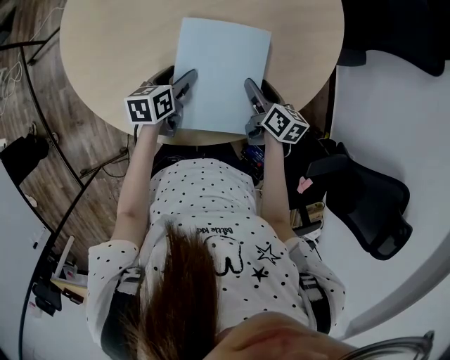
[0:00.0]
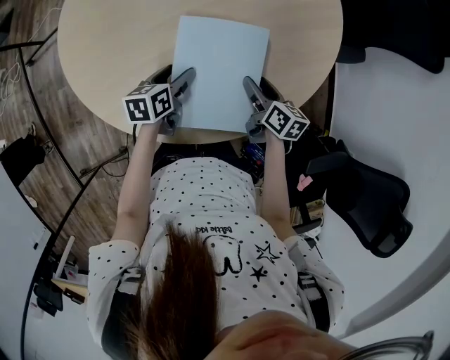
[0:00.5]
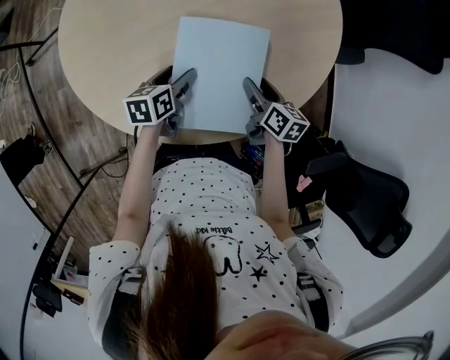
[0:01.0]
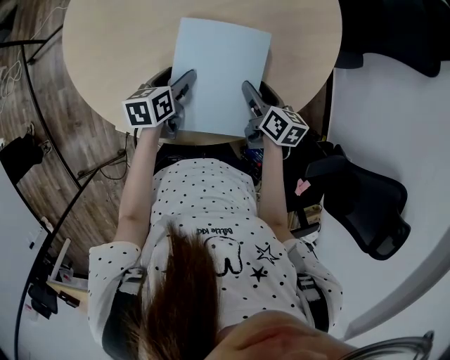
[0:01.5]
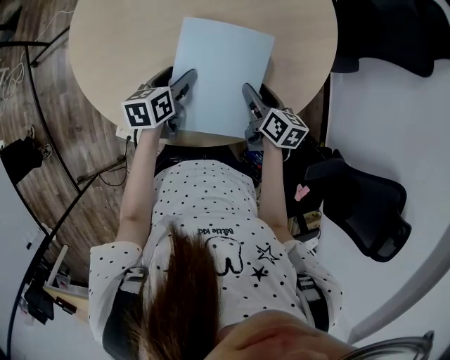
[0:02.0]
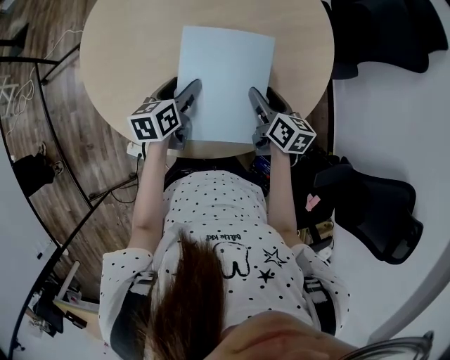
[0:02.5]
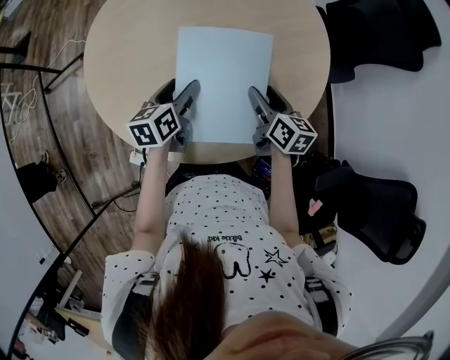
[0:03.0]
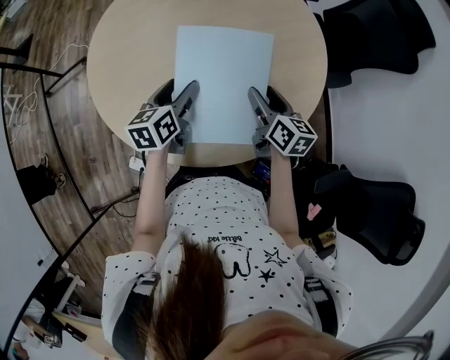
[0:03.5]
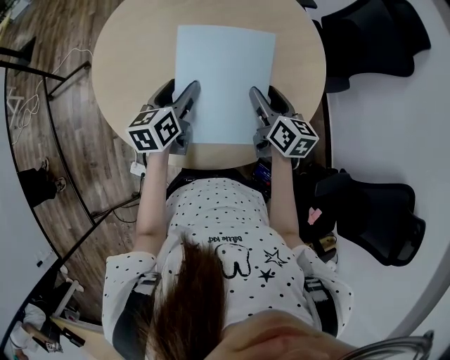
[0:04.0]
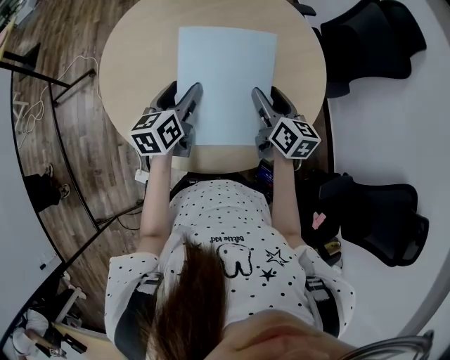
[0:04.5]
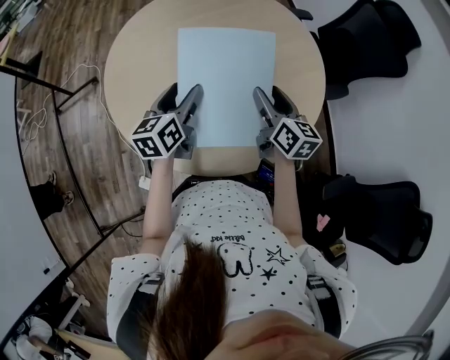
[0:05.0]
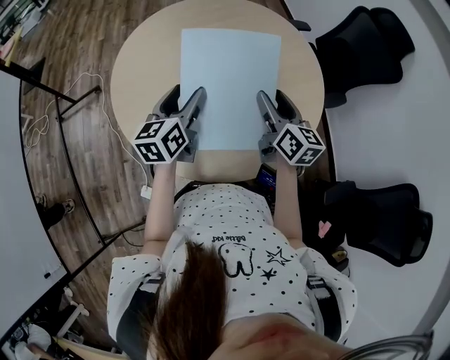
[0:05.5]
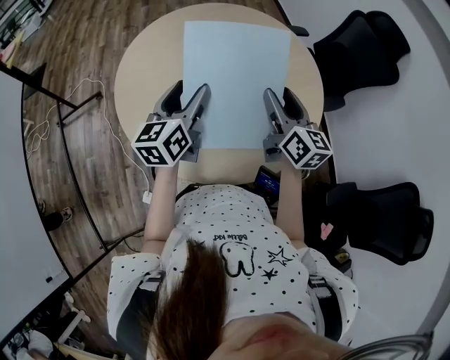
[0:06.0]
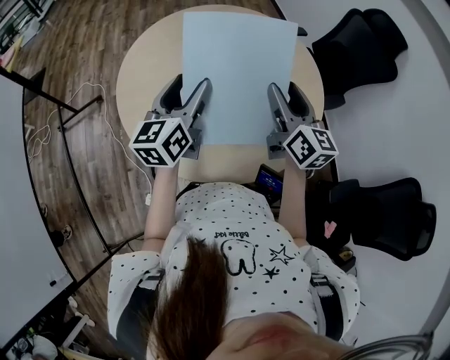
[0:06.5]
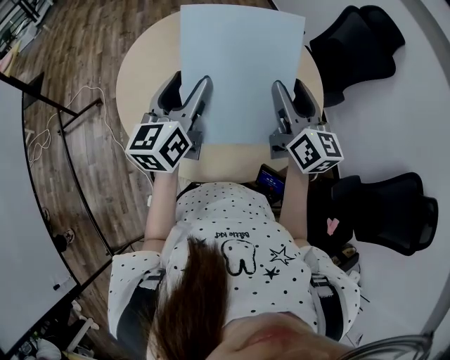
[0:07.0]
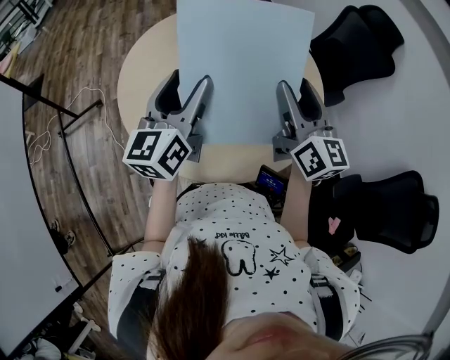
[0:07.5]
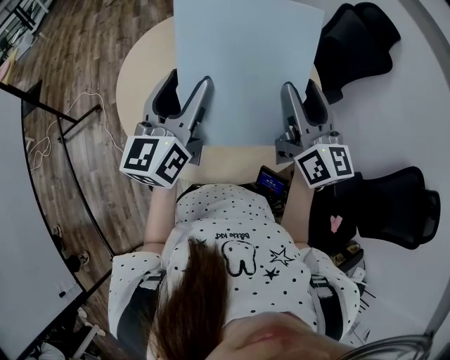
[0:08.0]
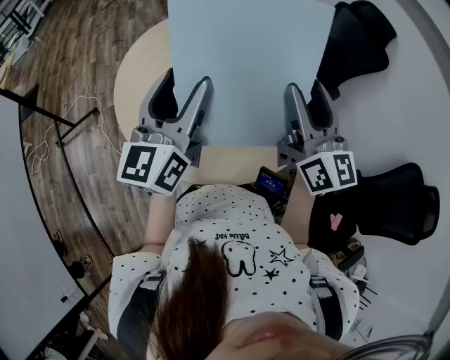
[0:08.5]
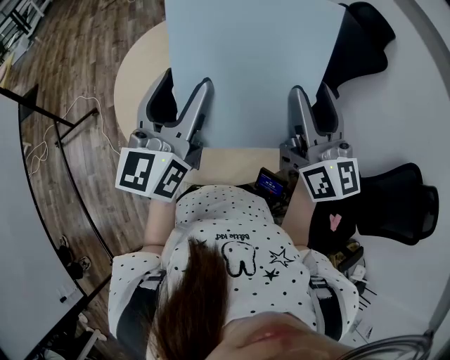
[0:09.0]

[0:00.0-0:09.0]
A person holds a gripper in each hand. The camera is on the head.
0:00.0 to 0:02.0: The left gripper shifts by roughly 5 cm.
0:02.0 to 0:04.5: Both grippers move upward, approximately 15 cm. The left gripper turns by approximately 20 degrees. Meanwhile the right gripper changes its angle by approximately 20 degrees.
0:04.5 to 0:07.0: The two grippers go some 15 cm upward. The right gripper swivels about 20 degrees. Meanwhile the left gripper swivels roughly 20 degrees.
0:07.0 to 0:09.0: The right gripper goes some 10 cm upward and backward, while the left gripper goes some 10 cm upward.

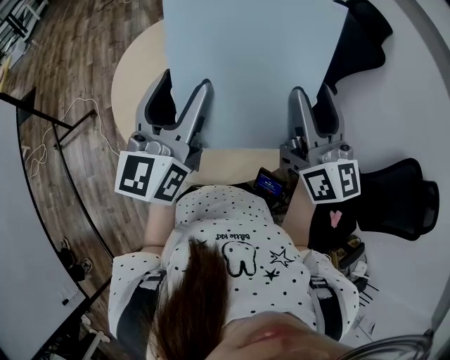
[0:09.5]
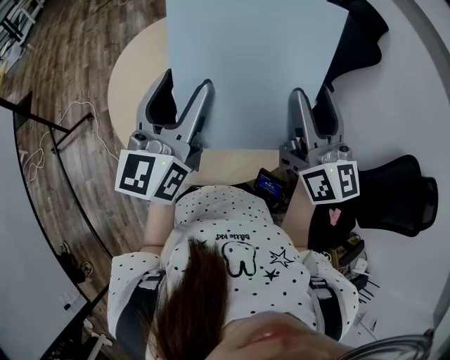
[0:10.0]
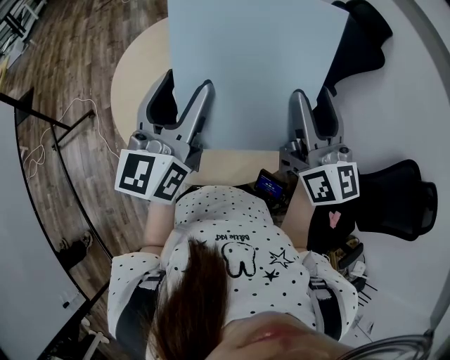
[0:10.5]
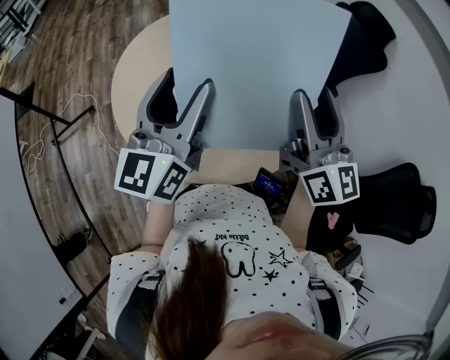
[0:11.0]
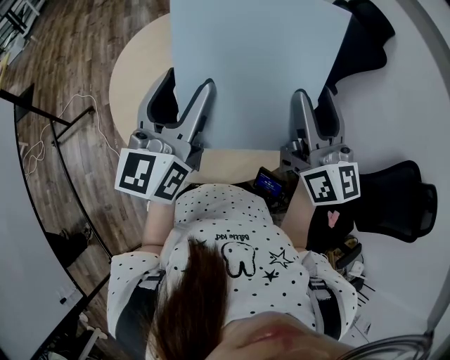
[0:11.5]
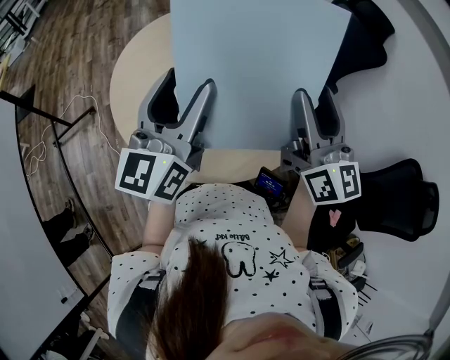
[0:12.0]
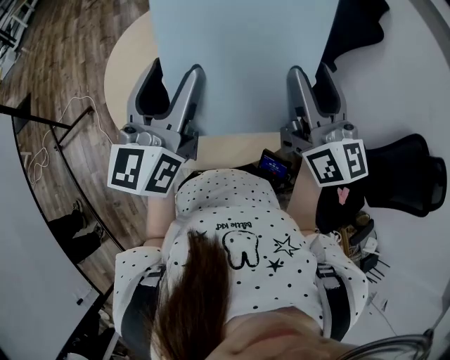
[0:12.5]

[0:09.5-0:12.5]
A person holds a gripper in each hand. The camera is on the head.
0:09.5 to 0:12.5: The two grippers keep their place.

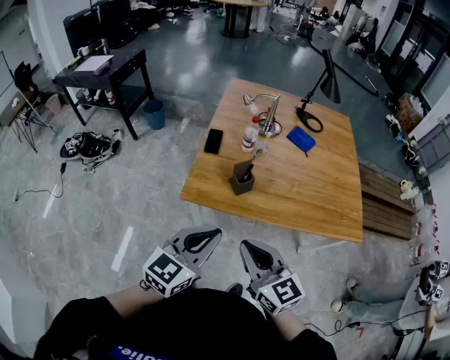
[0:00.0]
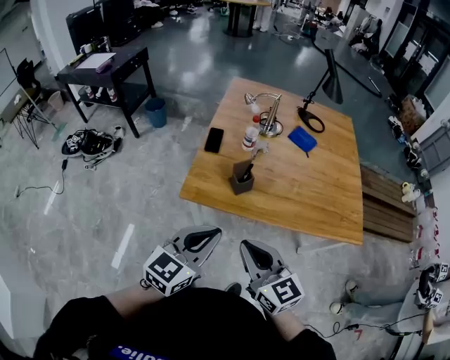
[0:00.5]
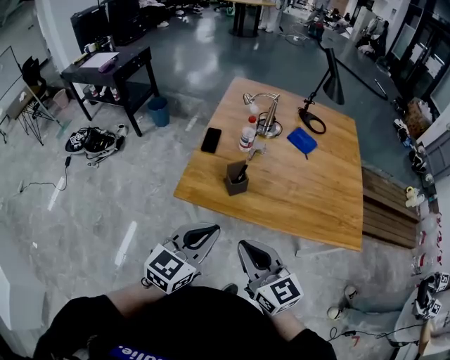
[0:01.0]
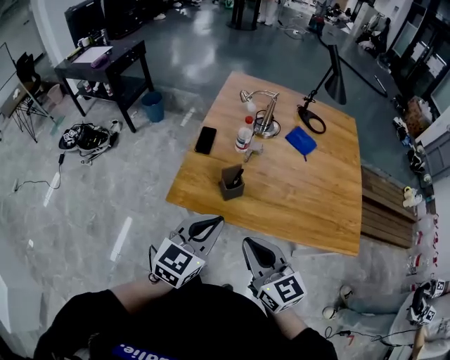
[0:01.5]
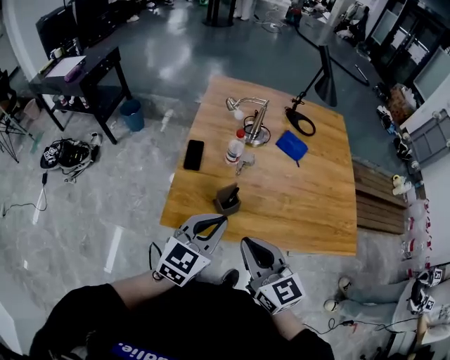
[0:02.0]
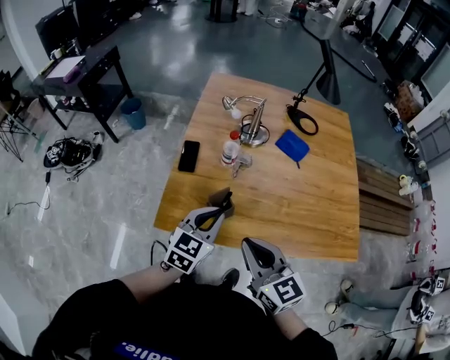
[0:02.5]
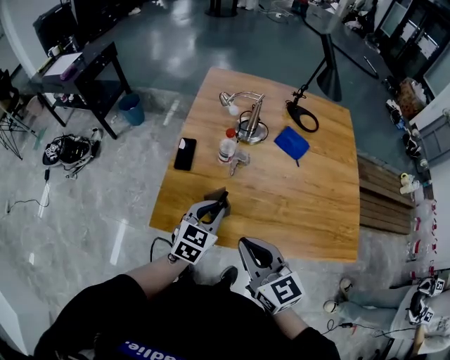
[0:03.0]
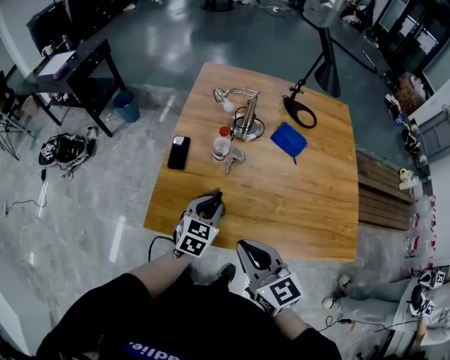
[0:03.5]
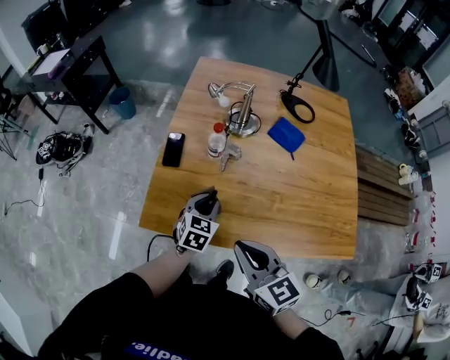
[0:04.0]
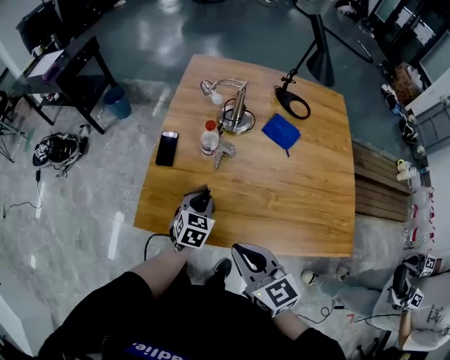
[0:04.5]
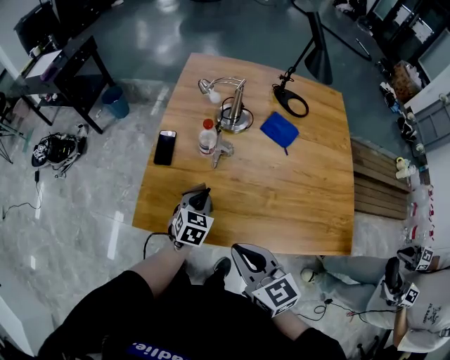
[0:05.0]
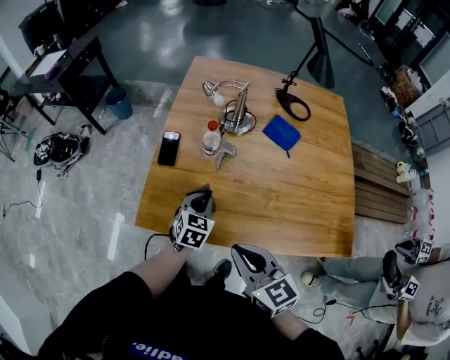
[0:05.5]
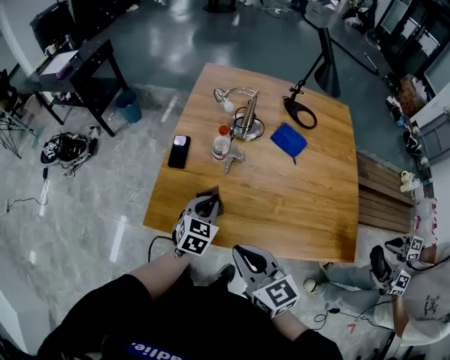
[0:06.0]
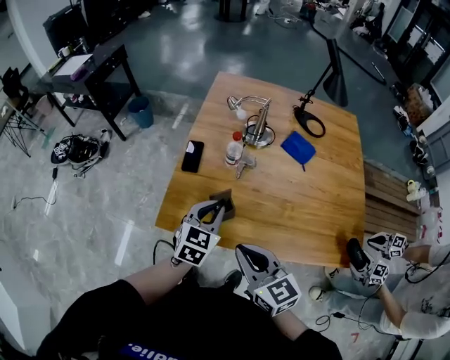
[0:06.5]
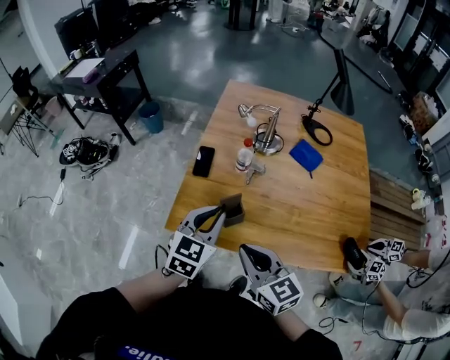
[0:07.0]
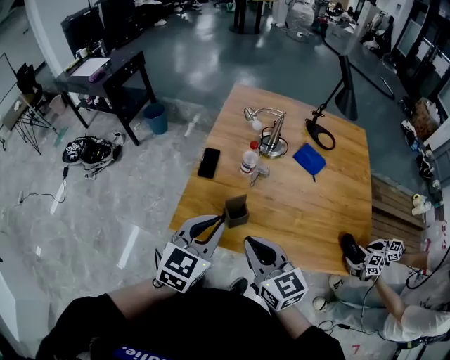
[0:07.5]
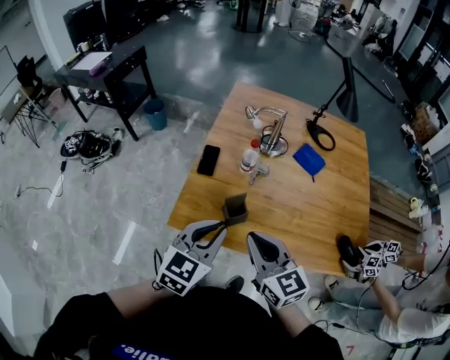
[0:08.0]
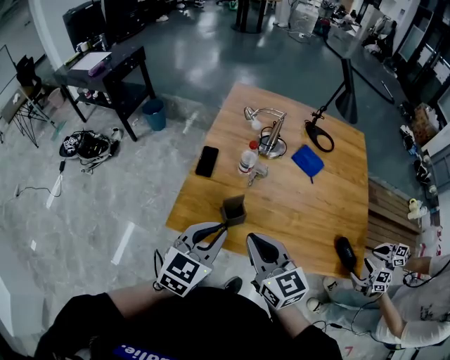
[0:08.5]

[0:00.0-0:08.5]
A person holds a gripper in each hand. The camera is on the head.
0:00.0 to 0:02.0: The two grippers go approximately 15 cm forward.
0:02.0 to 0:04.0: The left gripper heads downward and forward, covering roughly 25 cm, and swivels roughly 30 degrees. The right gripper shifts some 10 cm to the right and forward.
0:04.0 to 0:06.5: The left gripper travels upward by approximately 10 cm.
0:06.5 to 0:08.5: The left gripper heads upward and backward, covering roughly 10 cm.

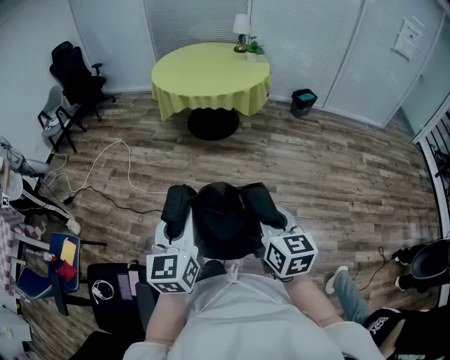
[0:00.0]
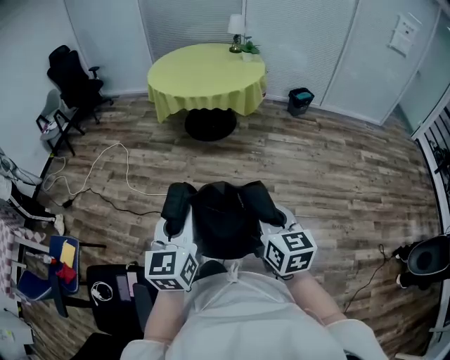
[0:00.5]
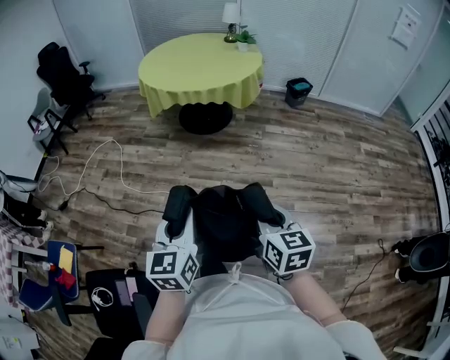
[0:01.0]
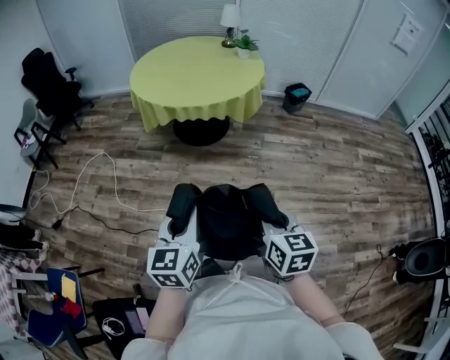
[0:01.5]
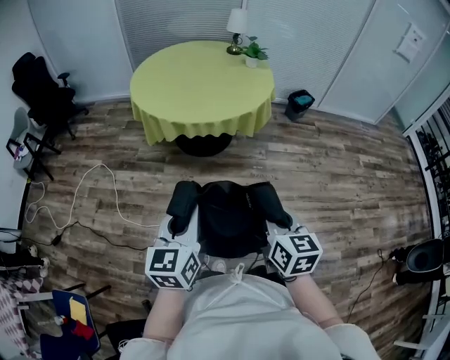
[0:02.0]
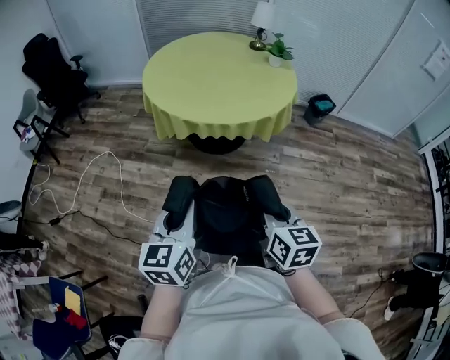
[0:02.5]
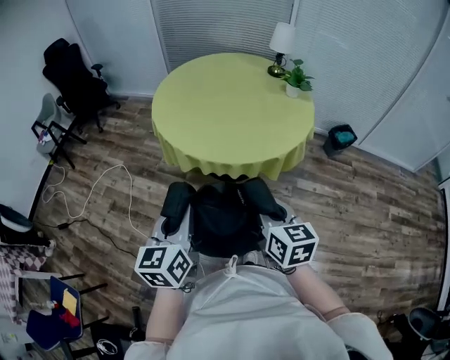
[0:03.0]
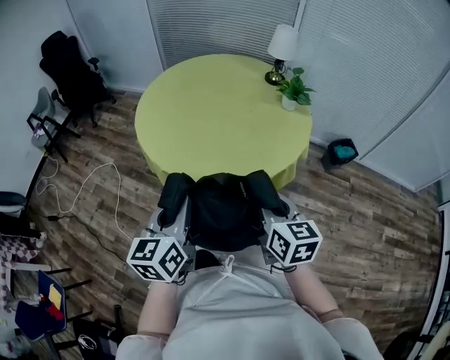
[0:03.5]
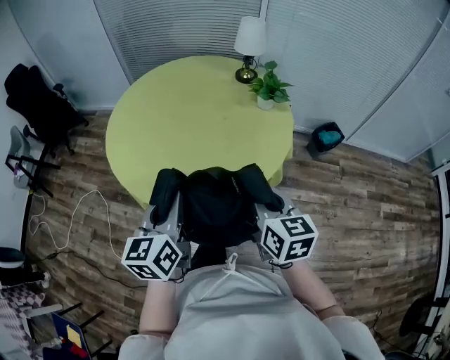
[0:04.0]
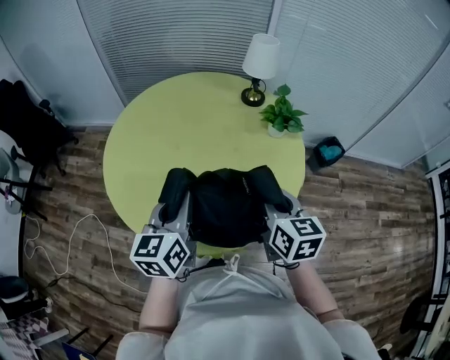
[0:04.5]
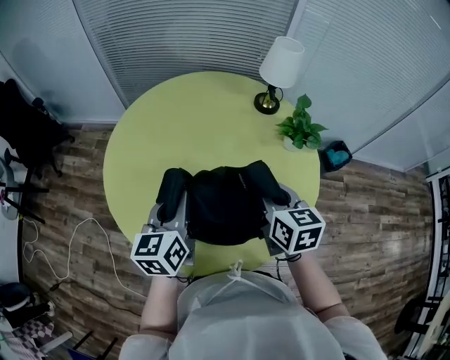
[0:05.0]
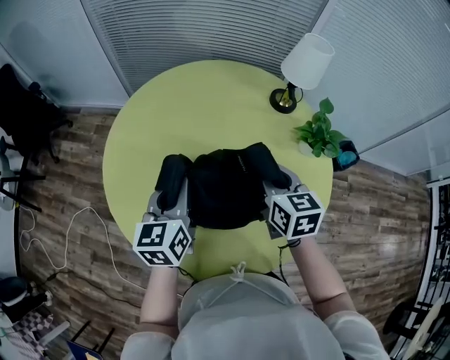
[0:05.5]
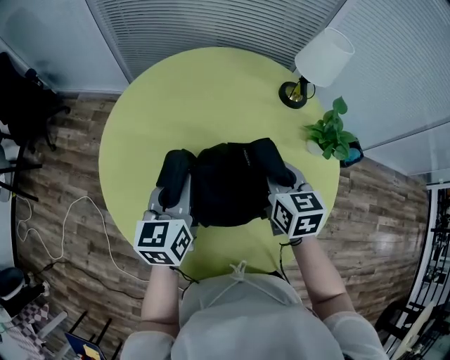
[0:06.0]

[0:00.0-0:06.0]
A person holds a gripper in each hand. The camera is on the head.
0:00.0 to 0:02.0: Both grippers move forward, roughly 35 cm.
0:02.0 to 0:04.0: The two grippers travel together, forward, roughly 60 cm.
0:04.0 to 0:06.0: The pair of grippers is taken forward, some 50 cm.
